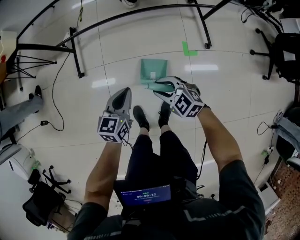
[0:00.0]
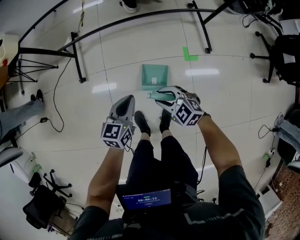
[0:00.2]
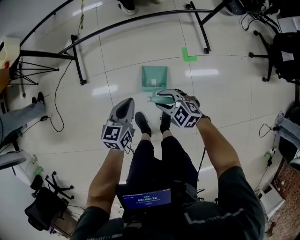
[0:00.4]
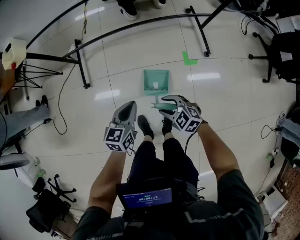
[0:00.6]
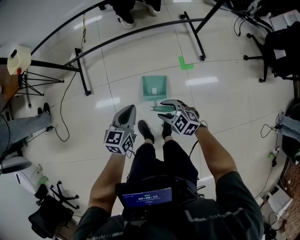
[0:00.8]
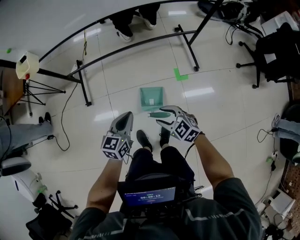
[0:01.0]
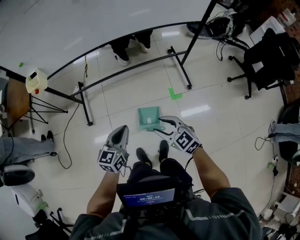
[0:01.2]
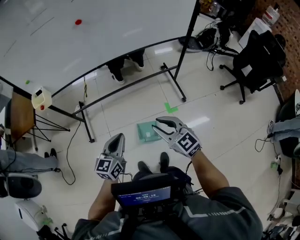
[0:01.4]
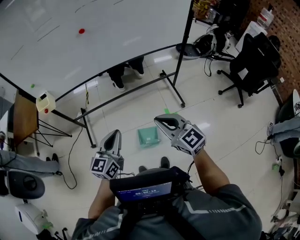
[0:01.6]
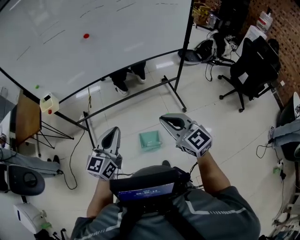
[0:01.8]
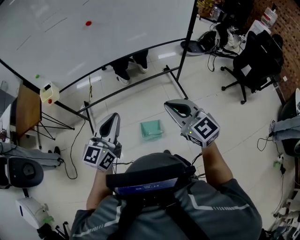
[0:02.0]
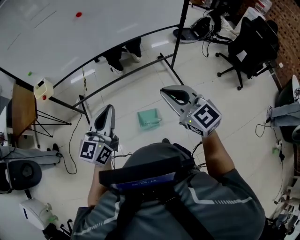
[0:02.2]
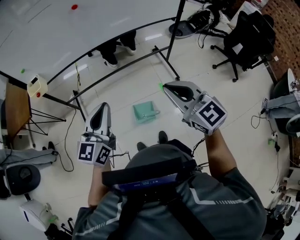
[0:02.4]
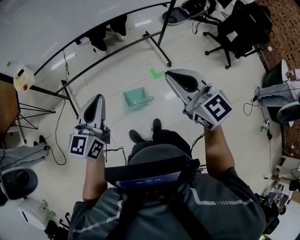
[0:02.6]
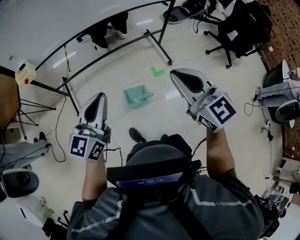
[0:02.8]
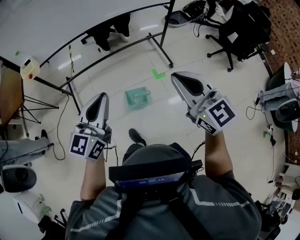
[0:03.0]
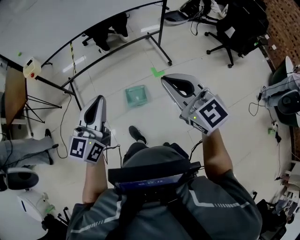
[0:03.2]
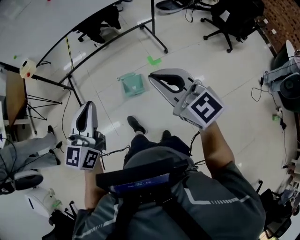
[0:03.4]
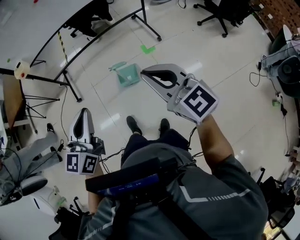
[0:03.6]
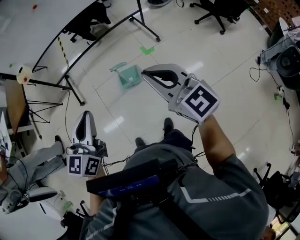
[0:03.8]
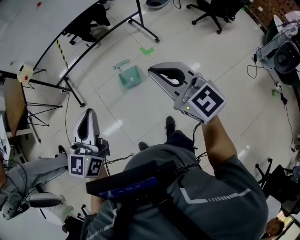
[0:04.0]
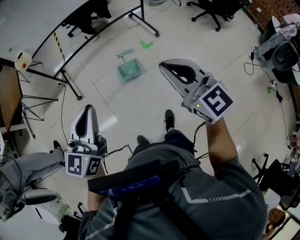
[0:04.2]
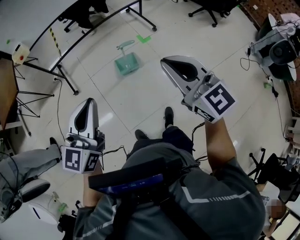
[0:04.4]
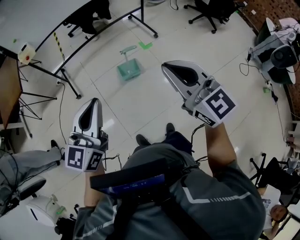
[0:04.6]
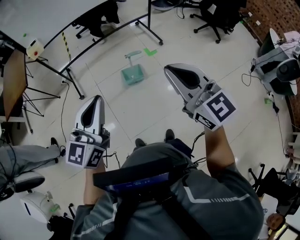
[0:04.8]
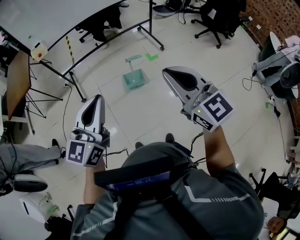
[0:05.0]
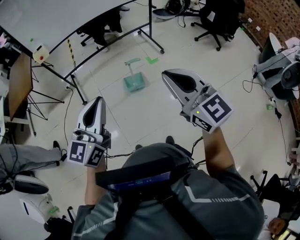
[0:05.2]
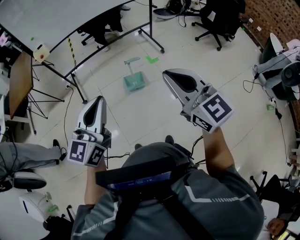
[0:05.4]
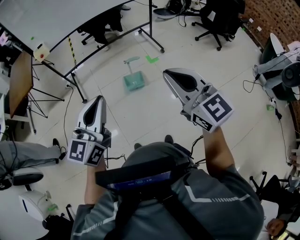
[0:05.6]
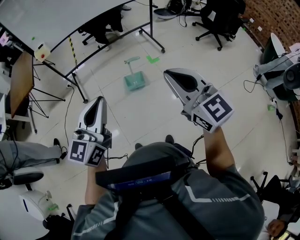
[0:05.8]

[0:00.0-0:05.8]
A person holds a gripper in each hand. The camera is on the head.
0:00.0 to 0:01.4: The grippers both shift upward by some 40 cm. The right gripper turns by some 40 degrees.
0:01.4 to 0:02.8: The right gripper shifts some 20 cm upward and backward, and closes; the left gripper goes some 15 cm upward, backward and to the left.
0:02.8 to 0:04.4: The pair of grippers is taken backward, about 50 cm.
0:04.4 to 0:05.8: The left gripper moves backward, upward and to the right, approximately 15 cm, while the right gripper is displaced backward and upward by roughly 15 cm.

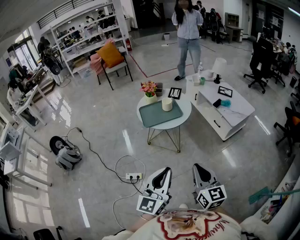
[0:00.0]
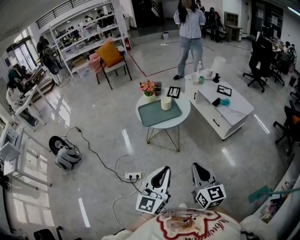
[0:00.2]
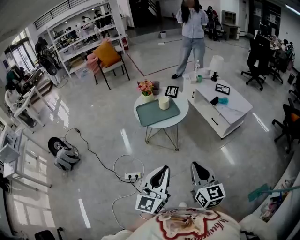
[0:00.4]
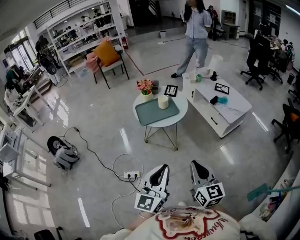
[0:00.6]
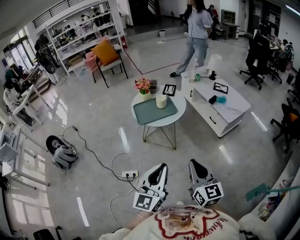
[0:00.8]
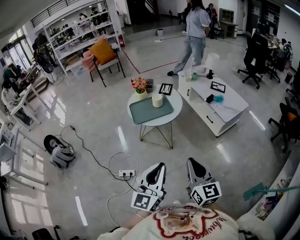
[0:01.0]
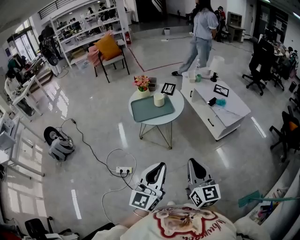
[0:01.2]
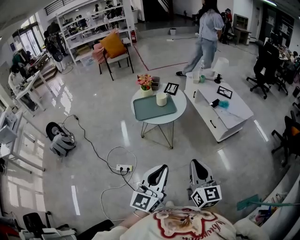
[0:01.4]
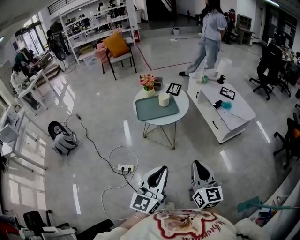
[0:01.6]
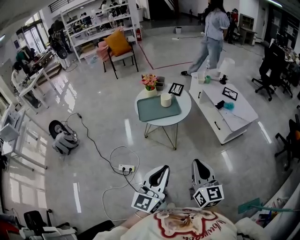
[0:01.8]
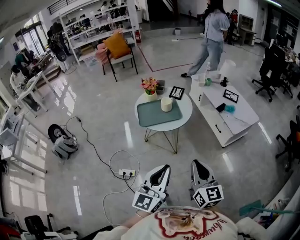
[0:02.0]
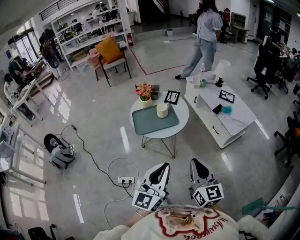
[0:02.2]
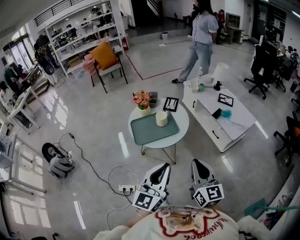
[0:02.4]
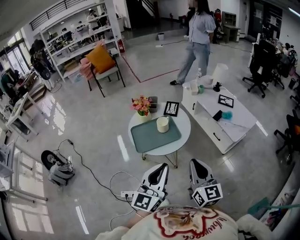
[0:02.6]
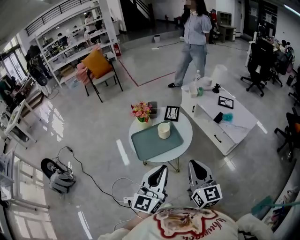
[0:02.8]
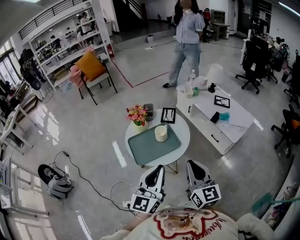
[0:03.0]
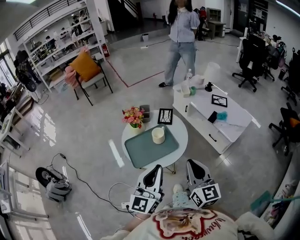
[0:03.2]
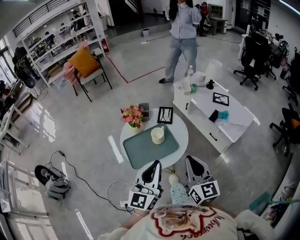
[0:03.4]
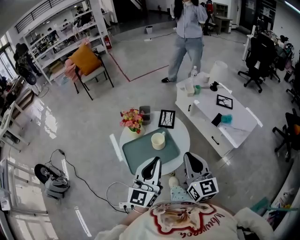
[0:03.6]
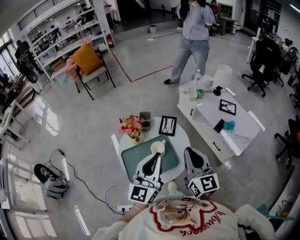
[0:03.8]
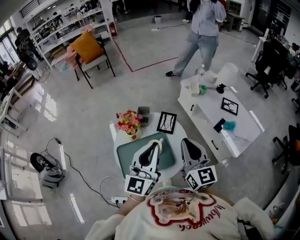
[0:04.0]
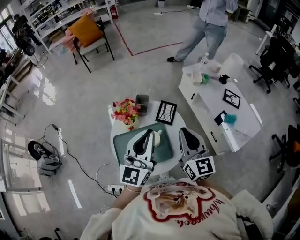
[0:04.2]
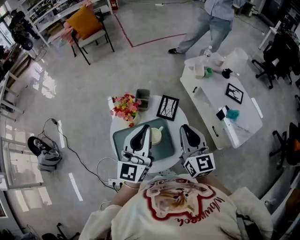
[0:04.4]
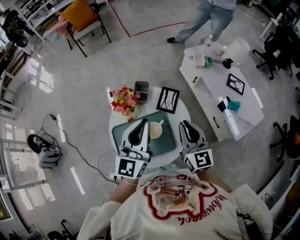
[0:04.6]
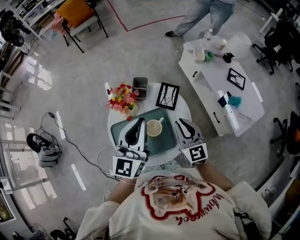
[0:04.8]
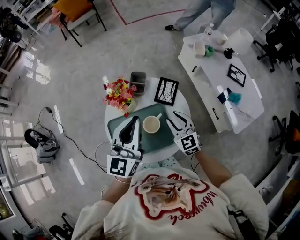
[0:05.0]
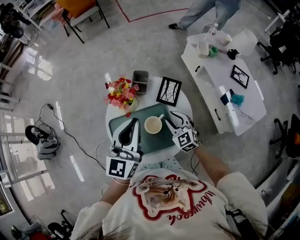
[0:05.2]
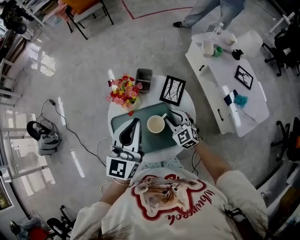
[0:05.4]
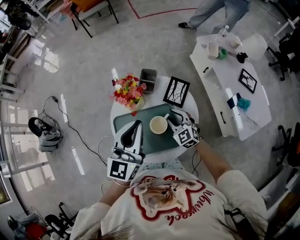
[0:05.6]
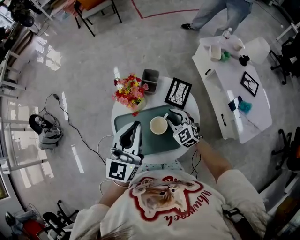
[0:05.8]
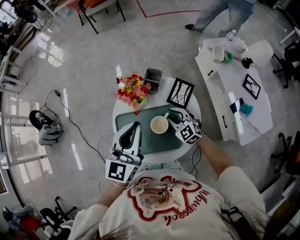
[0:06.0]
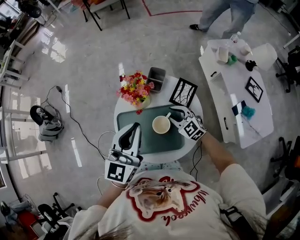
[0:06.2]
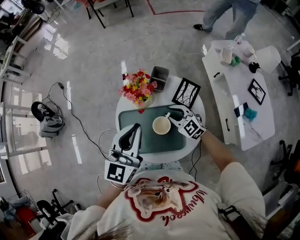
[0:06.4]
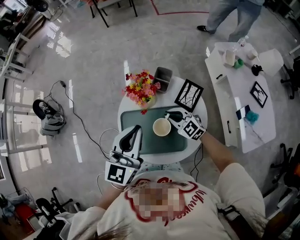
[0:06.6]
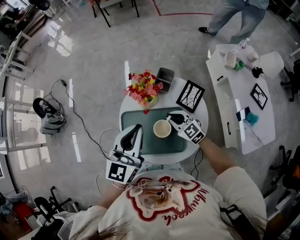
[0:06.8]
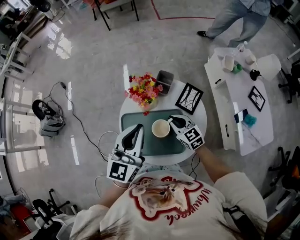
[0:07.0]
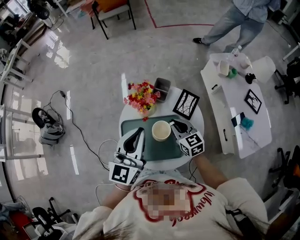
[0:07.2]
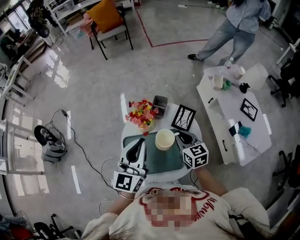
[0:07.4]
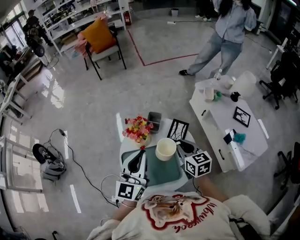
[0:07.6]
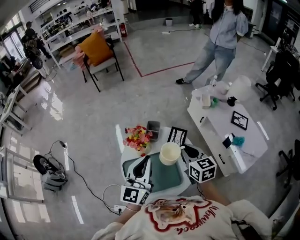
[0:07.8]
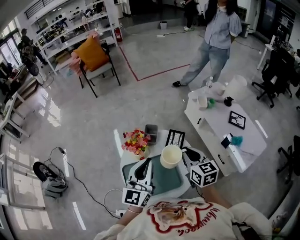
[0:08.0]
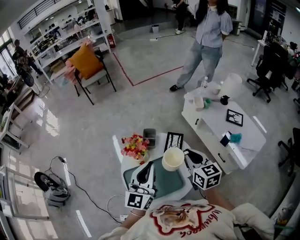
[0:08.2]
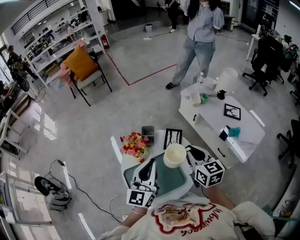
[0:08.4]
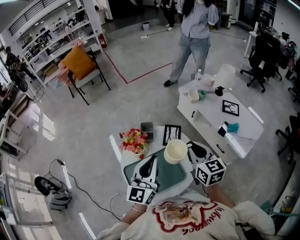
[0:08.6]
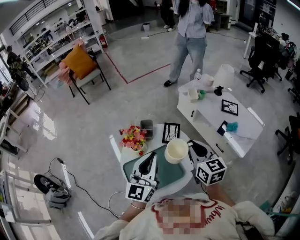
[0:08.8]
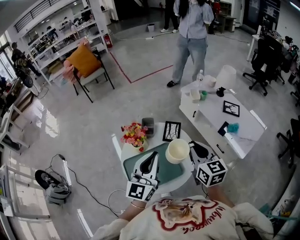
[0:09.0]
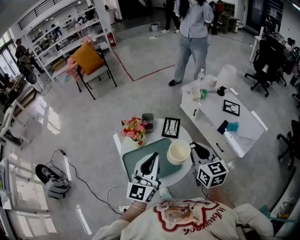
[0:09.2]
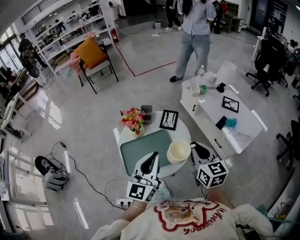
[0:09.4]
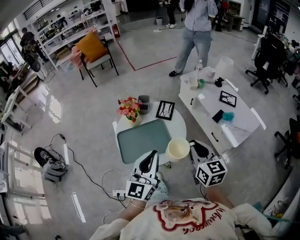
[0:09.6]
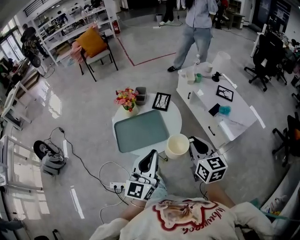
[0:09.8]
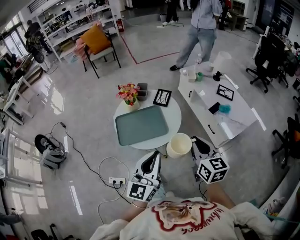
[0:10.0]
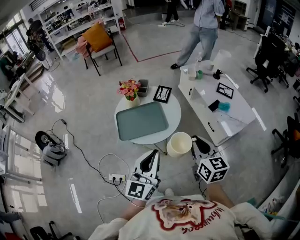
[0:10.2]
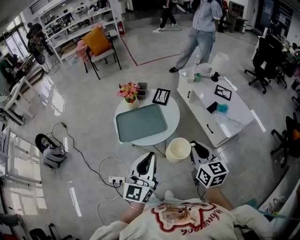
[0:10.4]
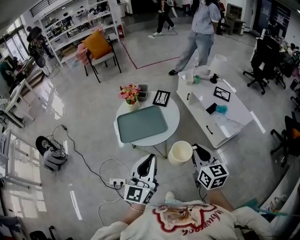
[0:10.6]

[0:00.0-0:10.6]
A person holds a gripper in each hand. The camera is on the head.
0:00.0 to 0:01.6: The two grippers go approximately 5 cm to the right.
0:01.6 to 0:03.0: The right gripper goes some 30 cm forward and to the left, while the left gripper moves forward, approximately 30 cm.
0:03.0 to 0:04.6: Both grippers move forward, approximately 30 cm.
0:04.6 to 0:06.0: The right gripper moves downward and to the left, roughly 20 cm, changes its angle by approximately 50 degrees, and opens up, while the left gripper shifts by roughly 5 cm.
0:06.0 to 0:07.6: The right gripper travels upward by some 15 cm, and twists approximately 40 degrees clockwise, seen from behind.
0:07.6 to 0:09.0: The left gripper heads to the right, covering about 5 cm; the right gripper goes roughly 15 cm upward, backward and to the right, and swivels approximately 20 degrees.
0:09.0 to 0:10.6: The two grippers go about 30 cm backward.

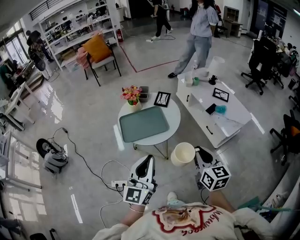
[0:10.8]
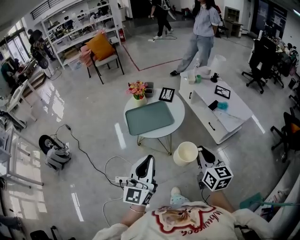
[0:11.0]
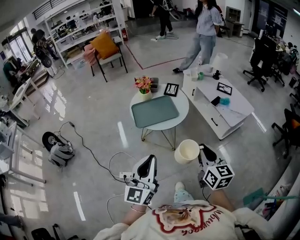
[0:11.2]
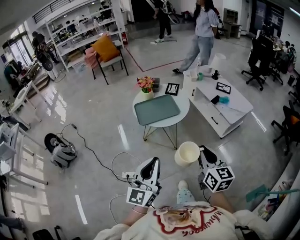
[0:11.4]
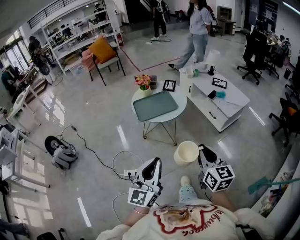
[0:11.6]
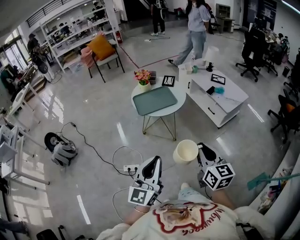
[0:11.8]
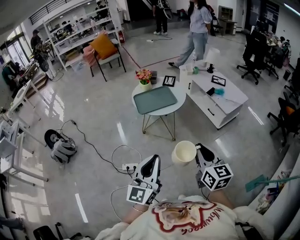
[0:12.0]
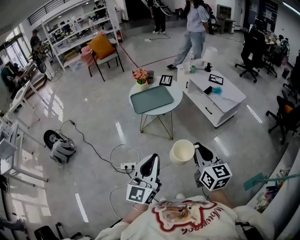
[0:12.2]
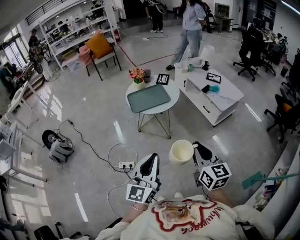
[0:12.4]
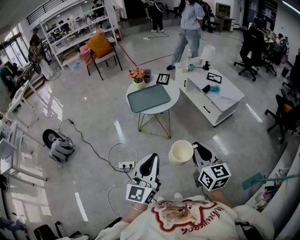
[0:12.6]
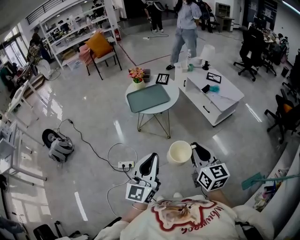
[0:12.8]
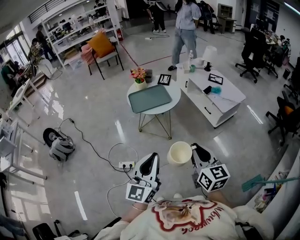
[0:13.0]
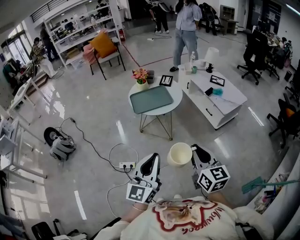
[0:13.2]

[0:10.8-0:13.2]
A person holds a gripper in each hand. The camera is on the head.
0:10.8 to 0:12.0: Both grippers move backward, about 25 cm.
0:12.0 to 0:13.2: The grippers move only a little.

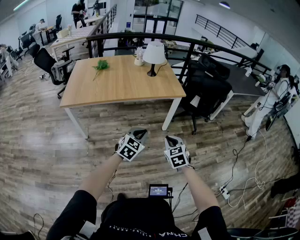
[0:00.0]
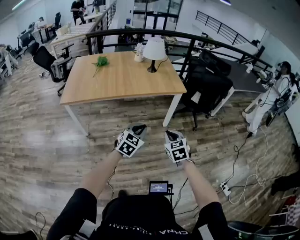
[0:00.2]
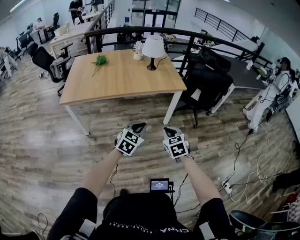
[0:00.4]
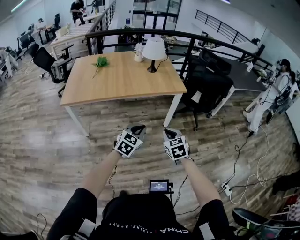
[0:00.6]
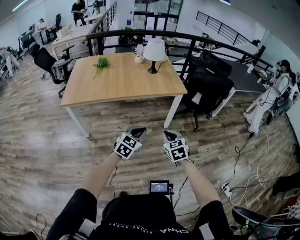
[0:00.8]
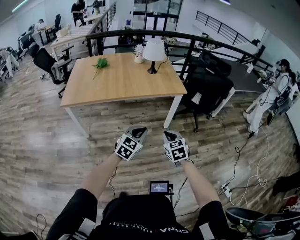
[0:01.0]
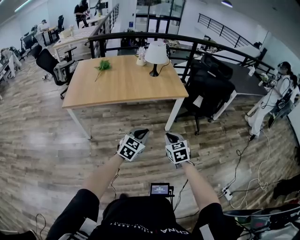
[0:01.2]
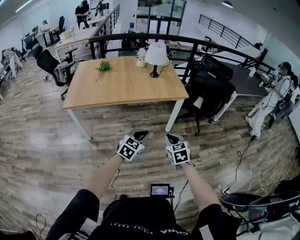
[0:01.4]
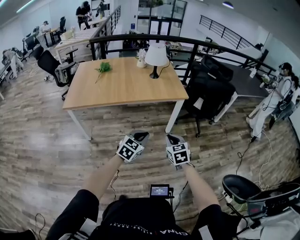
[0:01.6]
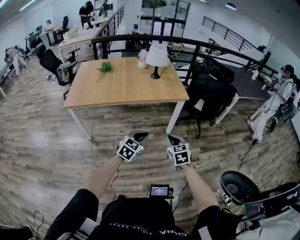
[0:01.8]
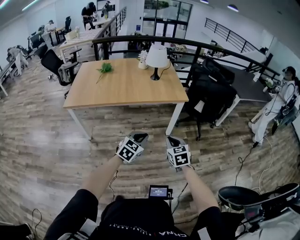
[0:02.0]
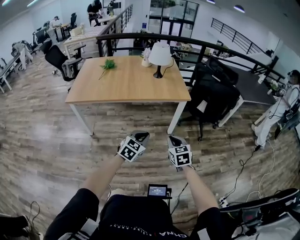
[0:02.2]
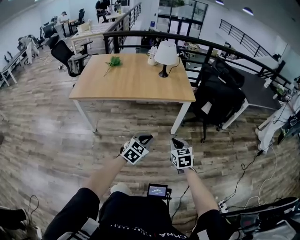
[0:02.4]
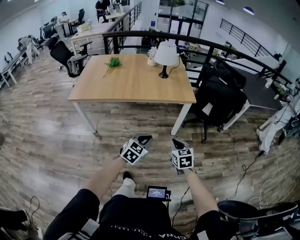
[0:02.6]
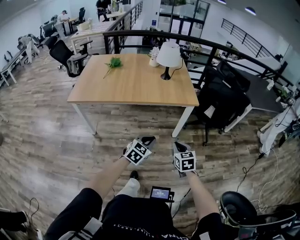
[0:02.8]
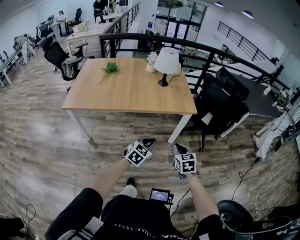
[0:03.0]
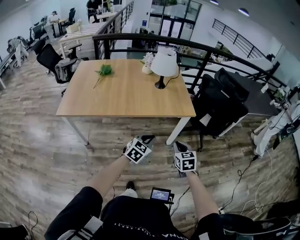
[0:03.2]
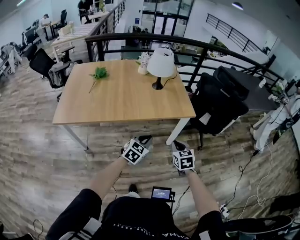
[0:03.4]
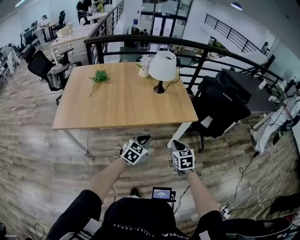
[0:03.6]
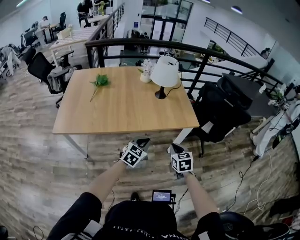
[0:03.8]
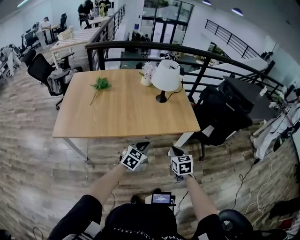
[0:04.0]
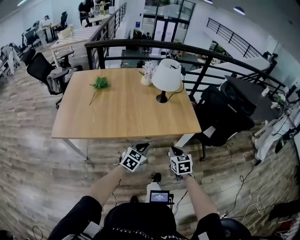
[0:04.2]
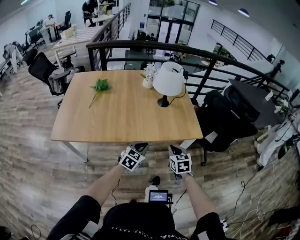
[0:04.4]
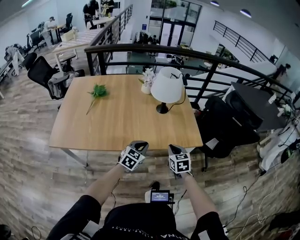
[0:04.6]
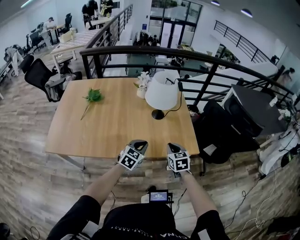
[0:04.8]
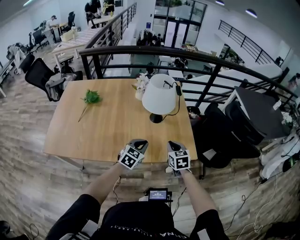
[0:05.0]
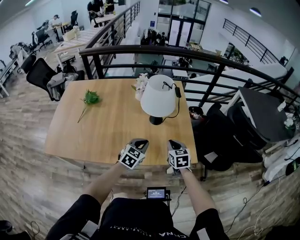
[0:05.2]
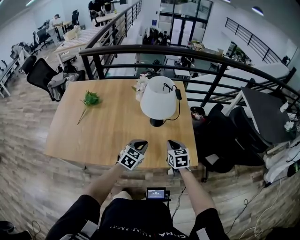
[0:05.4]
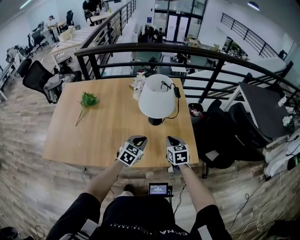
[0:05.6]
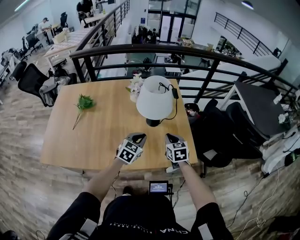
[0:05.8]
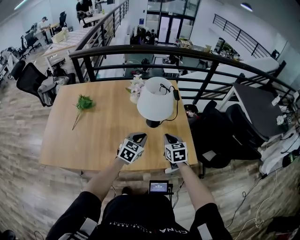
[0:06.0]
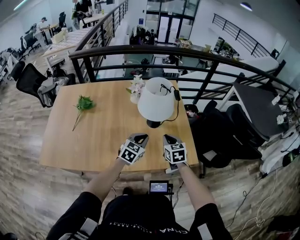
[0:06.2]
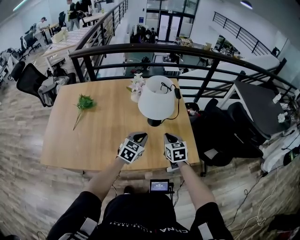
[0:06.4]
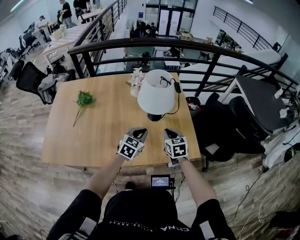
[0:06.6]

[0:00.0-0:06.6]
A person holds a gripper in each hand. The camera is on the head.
0:00.0 to 0:01.6: The right gripper shifts approximately 5 cm forward.
0:01.6 to 0:03.2: The grippers both shift forward by about 20 cm.
0:03.2 to 0:05.0: The pair of grippers is taken forward, about 40 cm.
0:05.0 to 0:06.6: The grippers both shift forward by roughly 10 cm.
